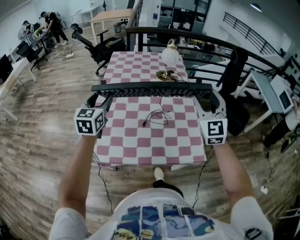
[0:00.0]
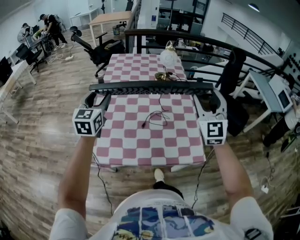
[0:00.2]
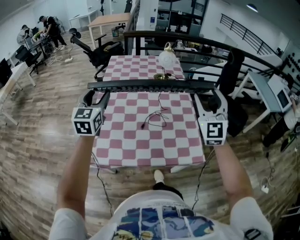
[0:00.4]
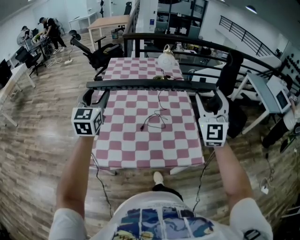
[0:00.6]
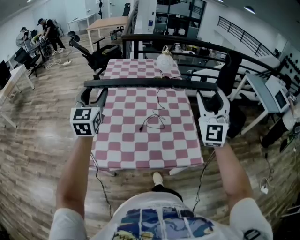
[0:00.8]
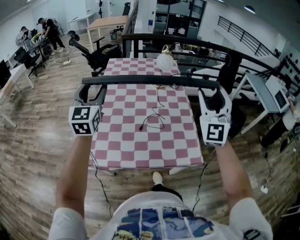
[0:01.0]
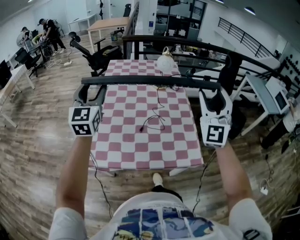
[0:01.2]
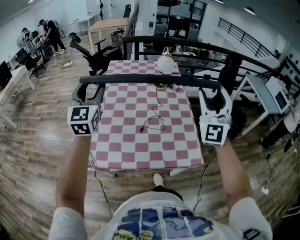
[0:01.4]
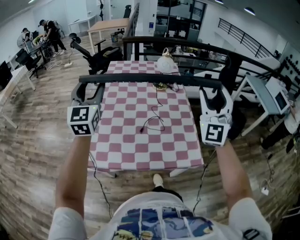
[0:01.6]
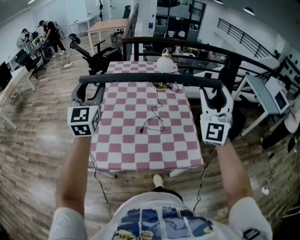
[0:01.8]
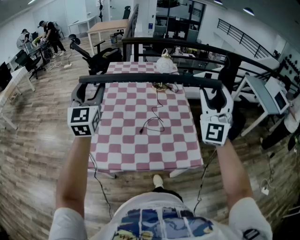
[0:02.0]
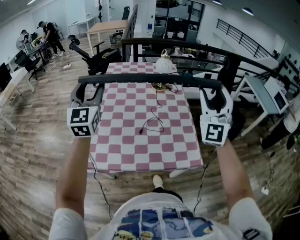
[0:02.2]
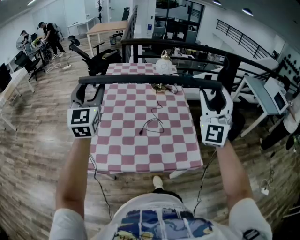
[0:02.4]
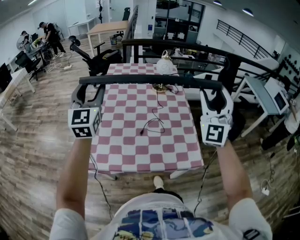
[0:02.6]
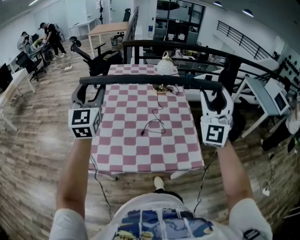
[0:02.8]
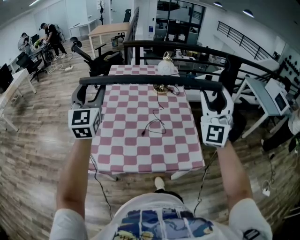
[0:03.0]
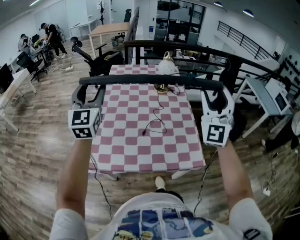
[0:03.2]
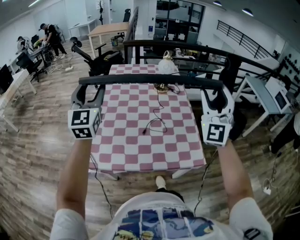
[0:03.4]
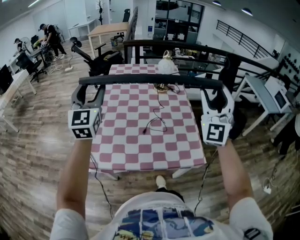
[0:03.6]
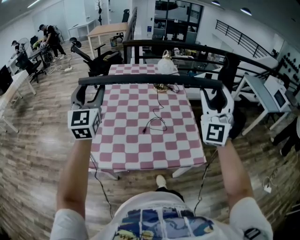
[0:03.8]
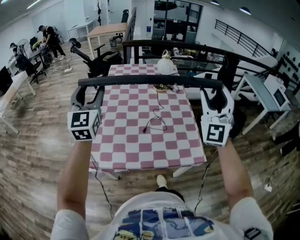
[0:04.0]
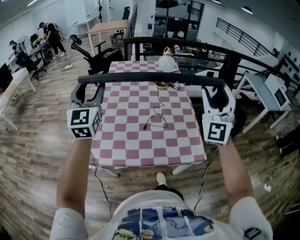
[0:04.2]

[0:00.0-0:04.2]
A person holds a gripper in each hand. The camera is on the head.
0:00.0 to 0:01.4: Both grippers move upward, some 10 cm. The left gripper changes its angle by approximately 20 degrees, while the right gripper turns by some 20 degrees.
0:01.4 to 0:04.2: The grippers stay close to where they were, moving slightly.

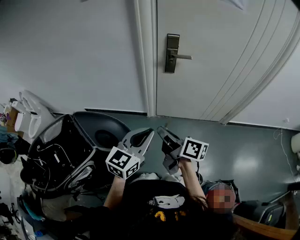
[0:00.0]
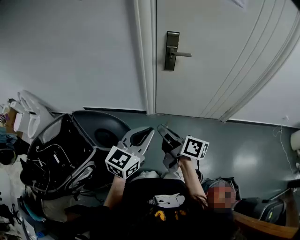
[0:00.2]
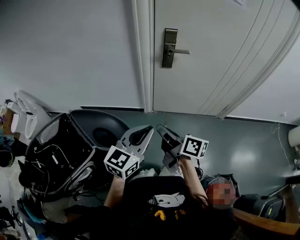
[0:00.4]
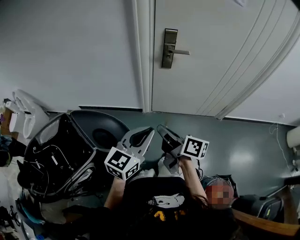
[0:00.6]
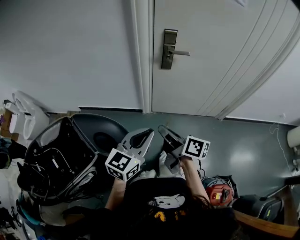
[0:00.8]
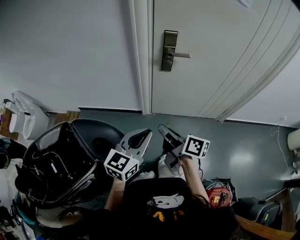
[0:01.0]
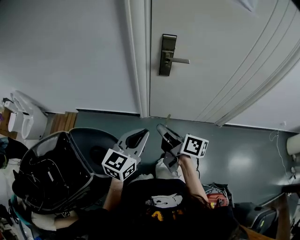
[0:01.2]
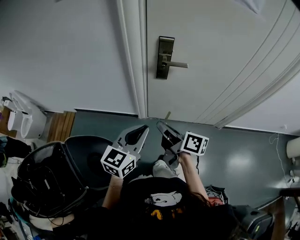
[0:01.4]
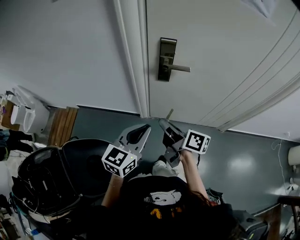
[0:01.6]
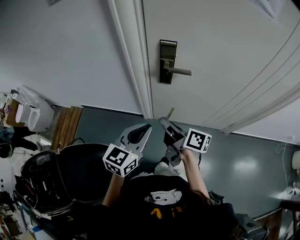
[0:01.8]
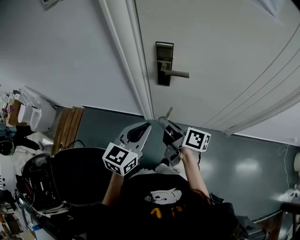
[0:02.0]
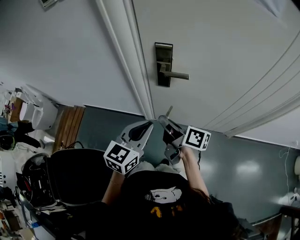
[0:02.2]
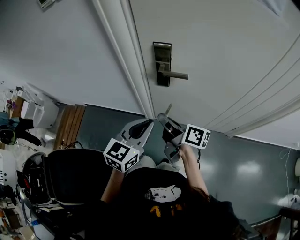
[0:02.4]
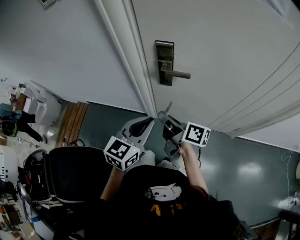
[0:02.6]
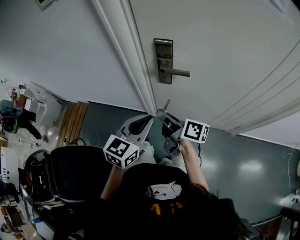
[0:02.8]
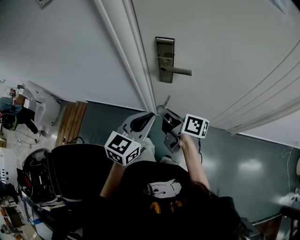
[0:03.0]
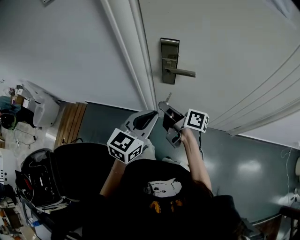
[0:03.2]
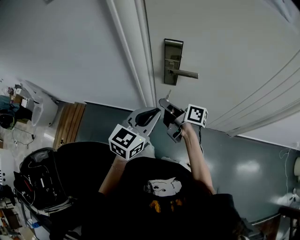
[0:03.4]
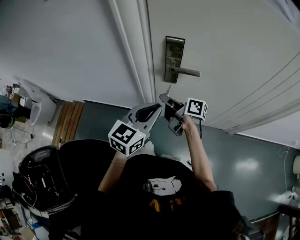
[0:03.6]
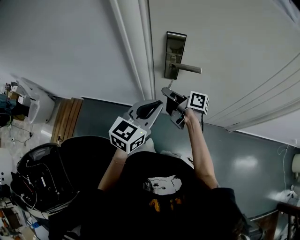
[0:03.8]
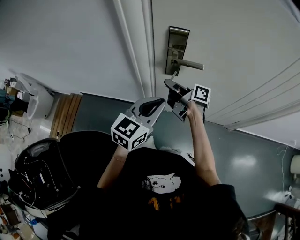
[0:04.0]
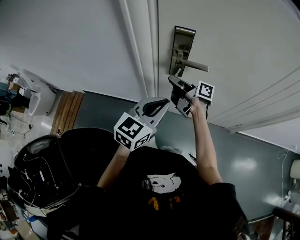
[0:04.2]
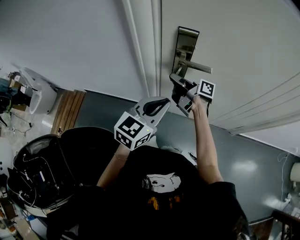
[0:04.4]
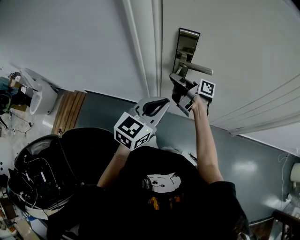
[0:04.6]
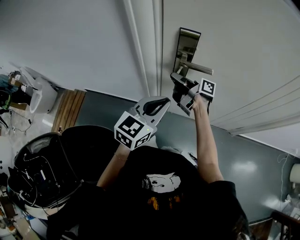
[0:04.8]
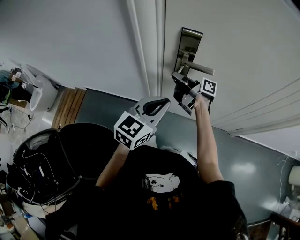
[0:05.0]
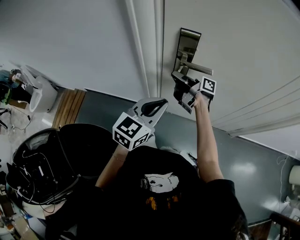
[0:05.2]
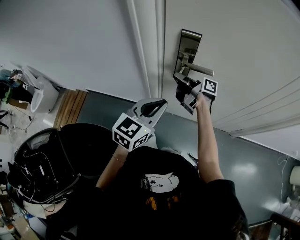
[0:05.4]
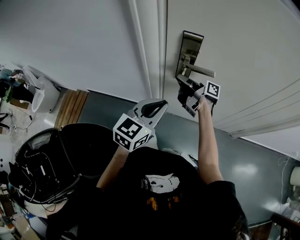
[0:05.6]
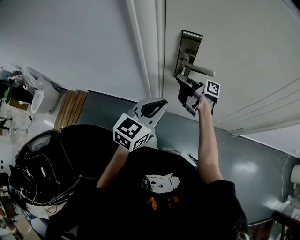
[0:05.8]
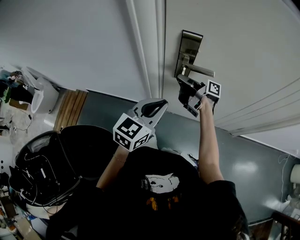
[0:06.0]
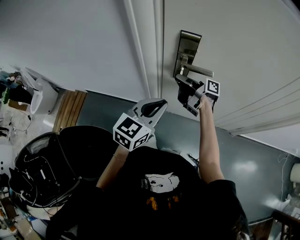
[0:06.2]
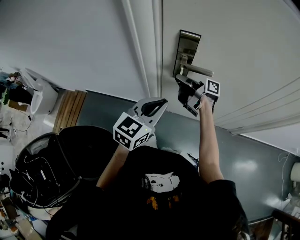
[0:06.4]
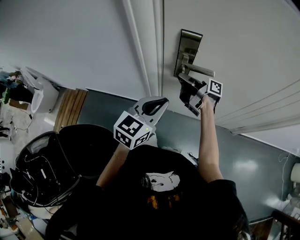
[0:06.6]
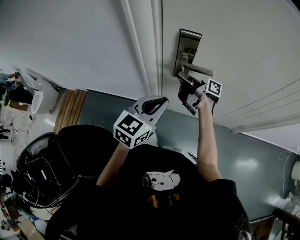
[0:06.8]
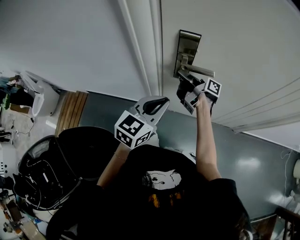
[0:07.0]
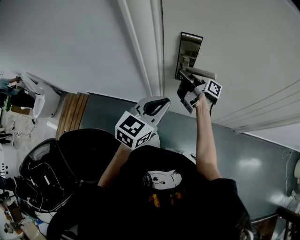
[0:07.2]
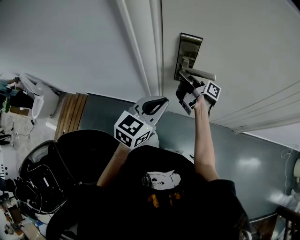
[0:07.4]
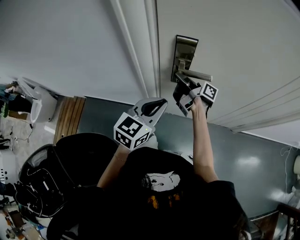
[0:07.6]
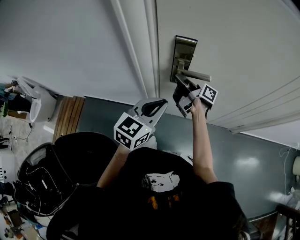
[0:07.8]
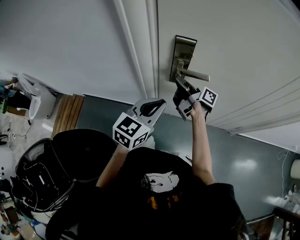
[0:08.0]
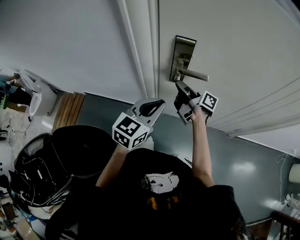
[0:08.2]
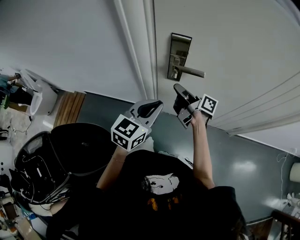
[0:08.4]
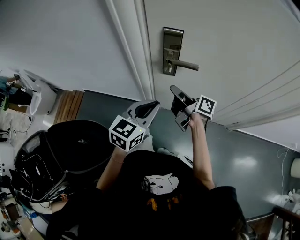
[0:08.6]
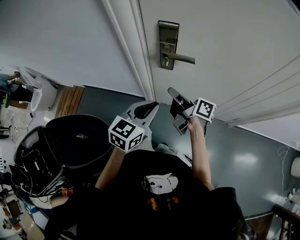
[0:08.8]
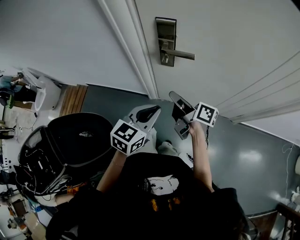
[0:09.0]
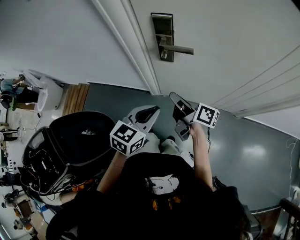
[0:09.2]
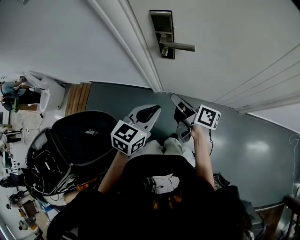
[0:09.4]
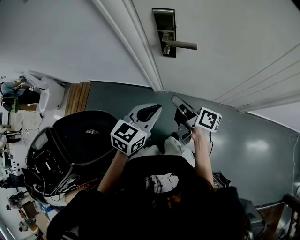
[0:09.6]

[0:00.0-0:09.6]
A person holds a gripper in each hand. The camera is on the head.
0:00.0 to 0:01.6: The left gripper ends up about 20 cm from where it was.
0:01.6 to 0:03.2: The left gripper moves about 10 cm.
0:08.0 to 0:09.6: The left gripper changes place by some 10 cm.

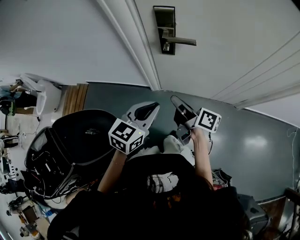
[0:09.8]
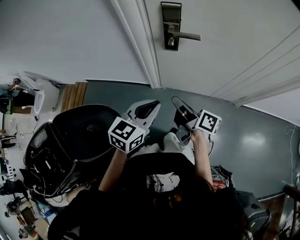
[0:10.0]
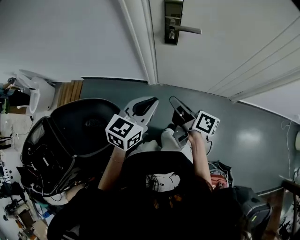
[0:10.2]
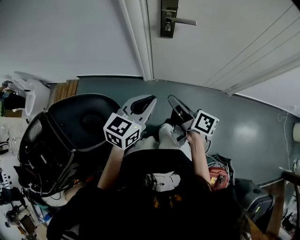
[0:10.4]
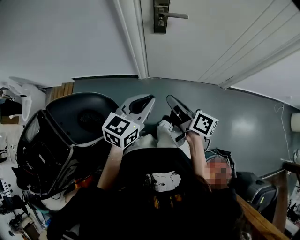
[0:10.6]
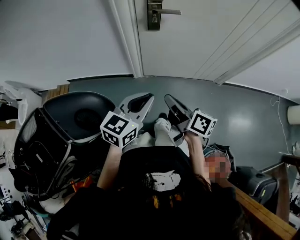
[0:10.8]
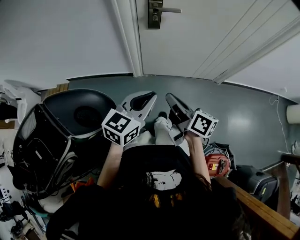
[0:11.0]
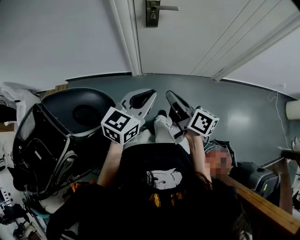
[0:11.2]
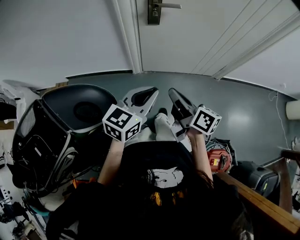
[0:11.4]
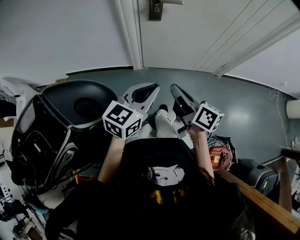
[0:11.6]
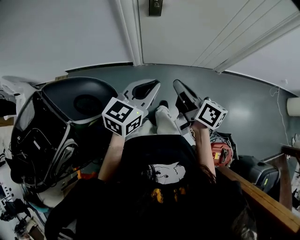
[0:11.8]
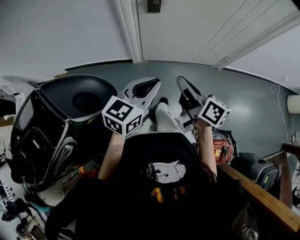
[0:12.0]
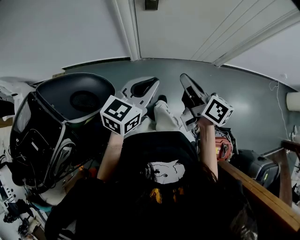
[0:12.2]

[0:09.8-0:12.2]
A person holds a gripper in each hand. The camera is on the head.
0:09.8 to 0:11.0: The left gripper moves some 15 cm.

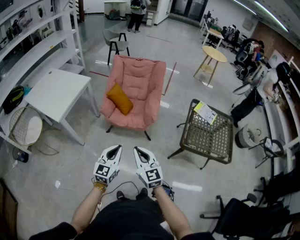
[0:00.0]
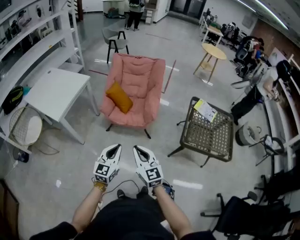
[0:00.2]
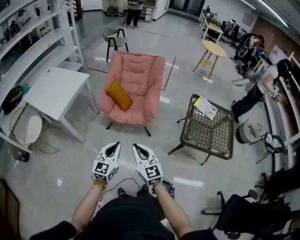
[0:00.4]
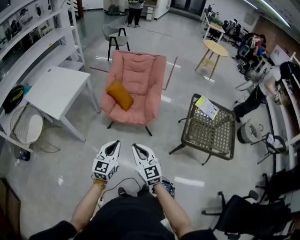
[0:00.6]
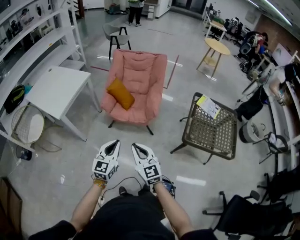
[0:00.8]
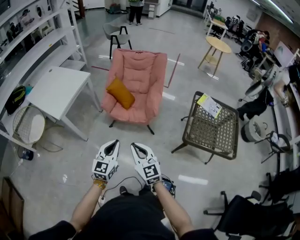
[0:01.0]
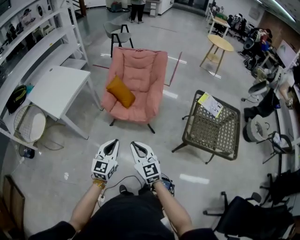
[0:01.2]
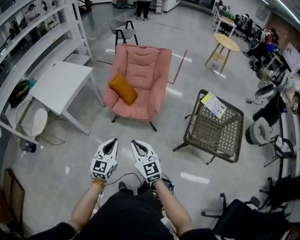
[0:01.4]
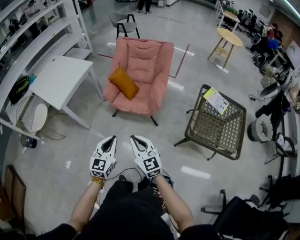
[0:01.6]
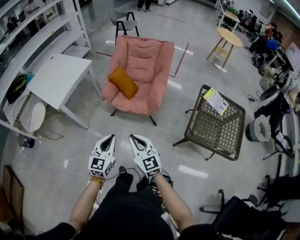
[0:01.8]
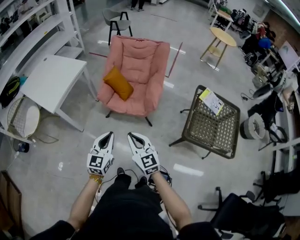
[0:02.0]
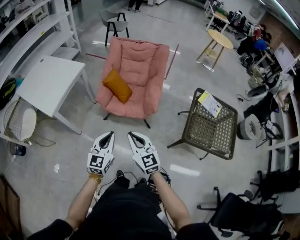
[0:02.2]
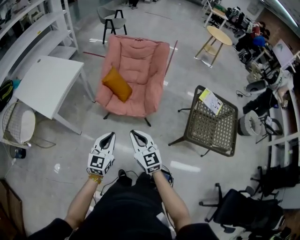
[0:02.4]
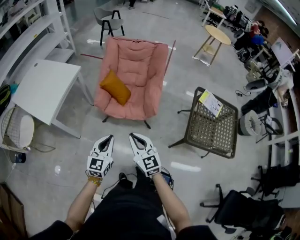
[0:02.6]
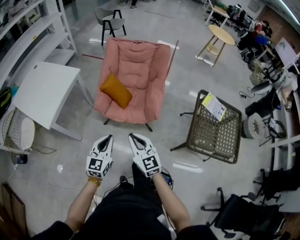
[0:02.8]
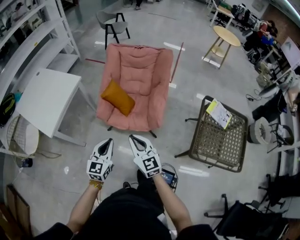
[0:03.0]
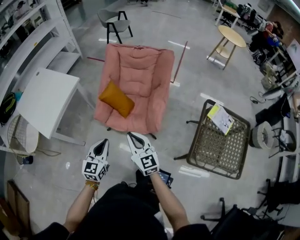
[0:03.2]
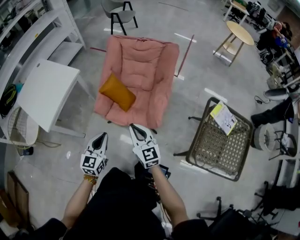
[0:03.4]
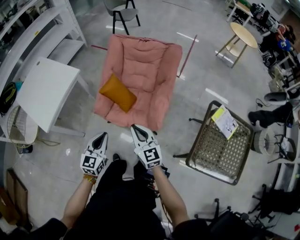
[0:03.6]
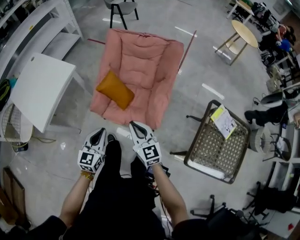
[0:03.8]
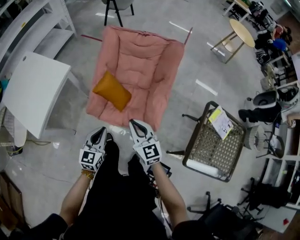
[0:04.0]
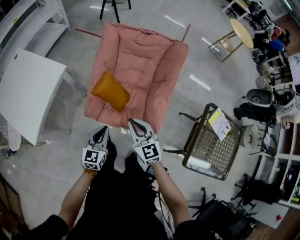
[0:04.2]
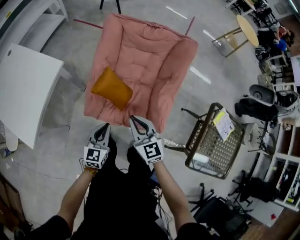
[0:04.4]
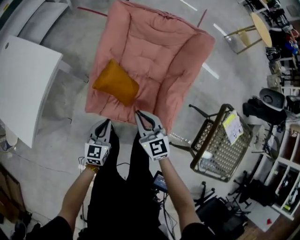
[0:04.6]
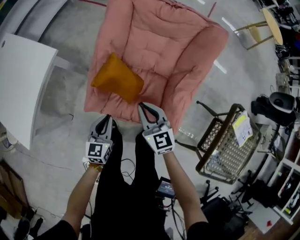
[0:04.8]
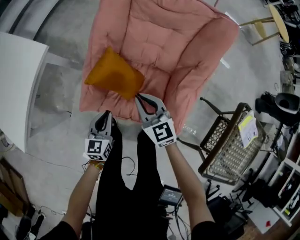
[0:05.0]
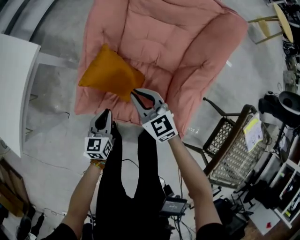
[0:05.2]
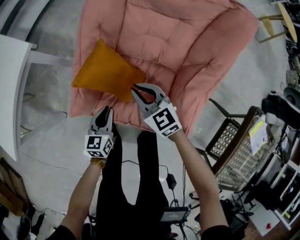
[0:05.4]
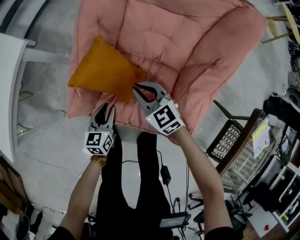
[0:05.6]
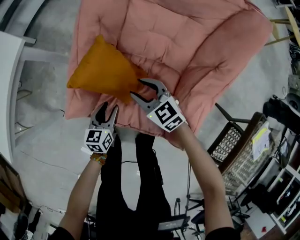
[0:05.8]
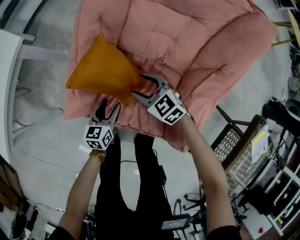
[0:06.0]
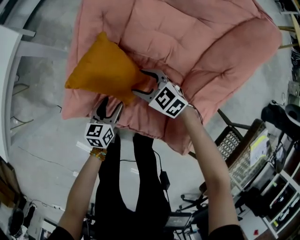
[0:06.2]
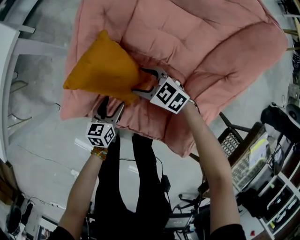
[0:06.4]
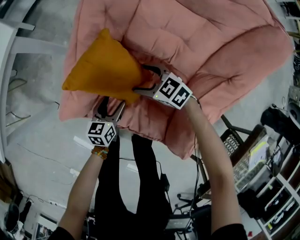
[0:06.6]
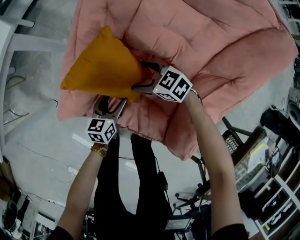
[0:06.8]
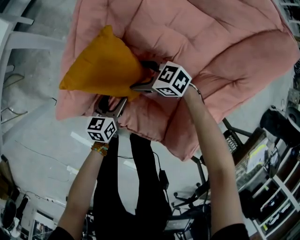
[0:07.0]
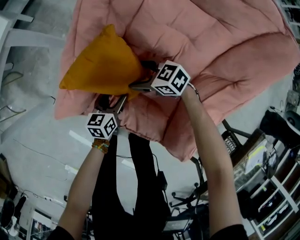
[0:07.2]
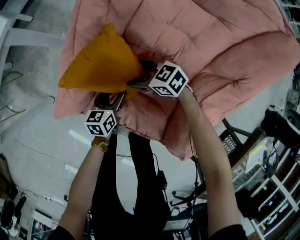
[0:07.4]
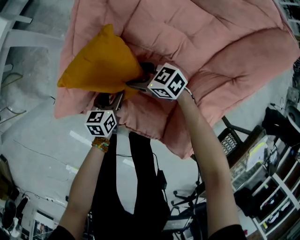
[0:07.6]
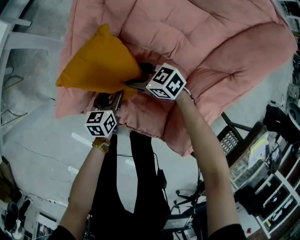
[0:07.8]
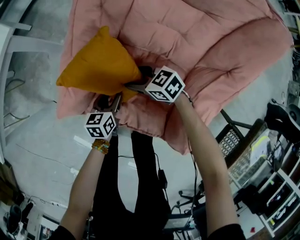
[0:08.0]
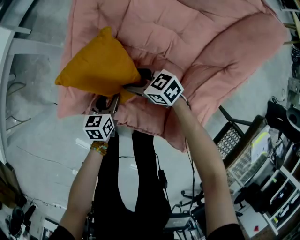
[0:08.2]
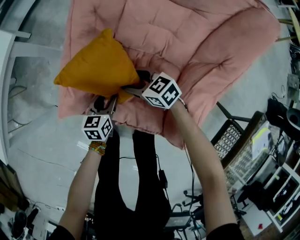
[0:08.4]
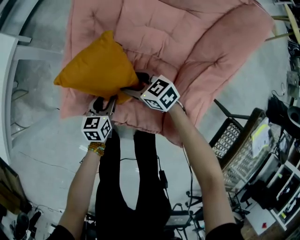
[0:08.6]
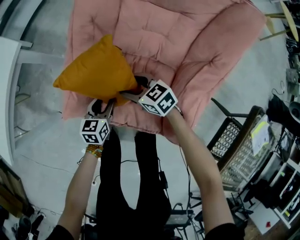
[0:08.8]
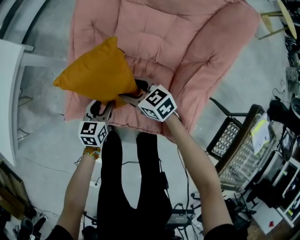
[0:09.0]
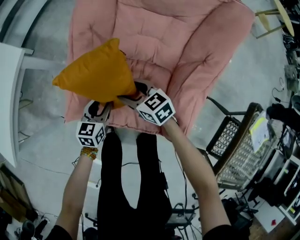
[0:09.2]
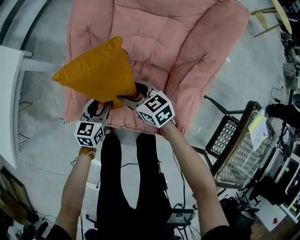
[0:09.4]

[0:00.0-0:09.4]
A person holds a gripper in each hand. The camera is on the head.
0:00.0 to 0:01.6: The left gripper shifts by approximately 5 cm; the right gripper is displaced forward by roughly 5 cm.
0:01.6 to 0:03.2: The two grippers go approximately 25 cm forward.
0:03.2 to 0:04.8: The grippers both shift forward and downward by about 40 cm.
0:04.8 to 0:06.2: Both grippers travel together downward, about 25 cm. The right gripper changes its angle by approximately 40 degrees, and opens; the left gripper opens.
0:06.2 to 0:07.8: The left gripper shifts by some 5 cm; the right gripper travels downward by roughly 5 cm.
0:07.8 to 0:09.4: The grippers both shift upward by about 15 cm. The left gripper rotates approximately 30 degrees. Meanwhile the right gripper rotates roughly 30 degrees.
